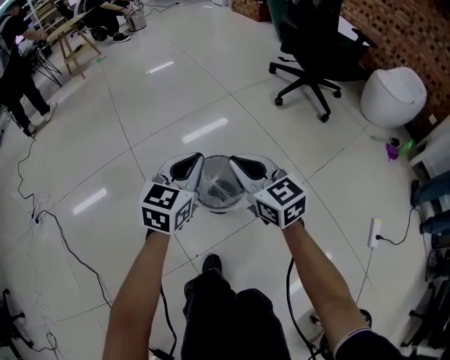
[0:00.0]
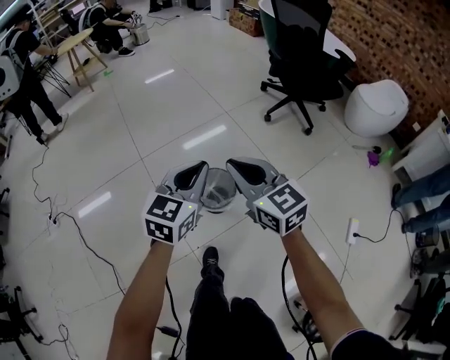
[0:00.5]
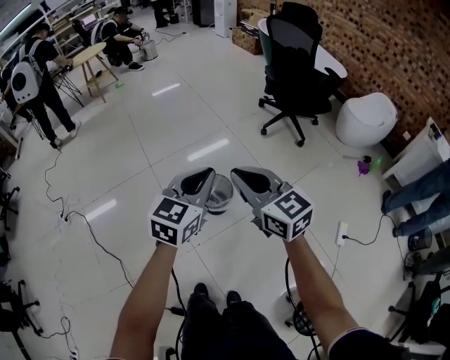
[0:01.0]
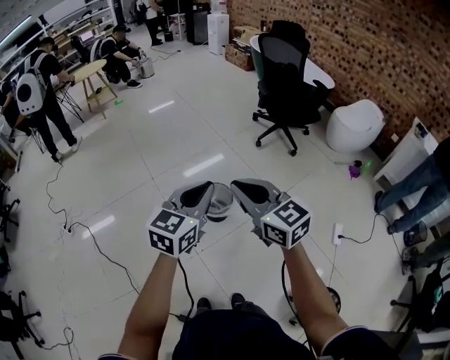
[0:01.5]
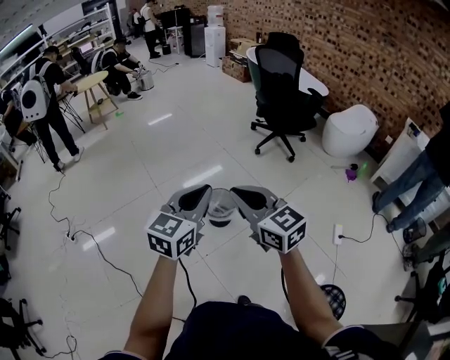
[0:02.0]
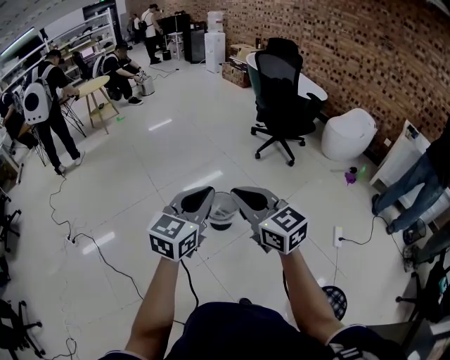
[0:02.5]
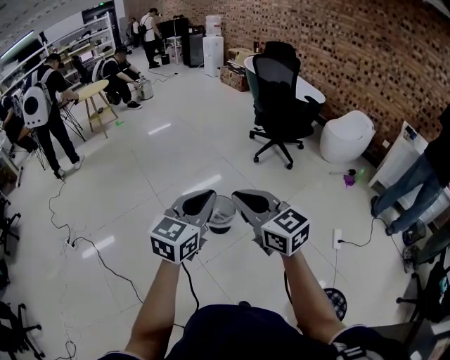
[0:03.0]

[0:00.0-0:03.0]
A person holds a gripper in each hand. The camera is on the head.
0:00.0 to 0:01.5: Both grippers travel together upward and backward, roughly 50 cm.
0:01.5 to 0:03.0: The two grippers go about 5 cm backward.

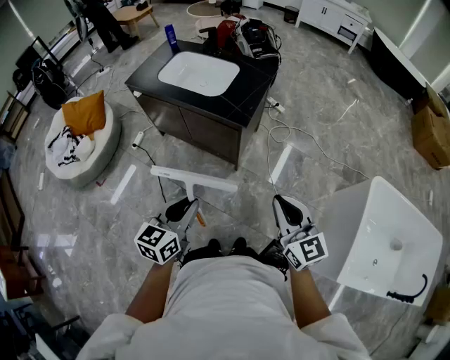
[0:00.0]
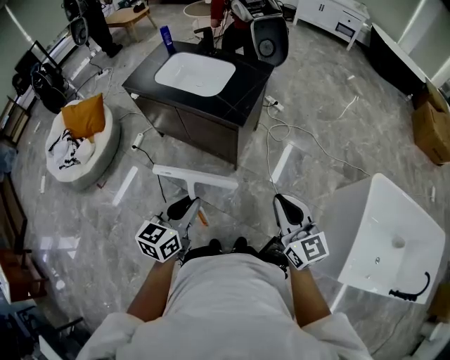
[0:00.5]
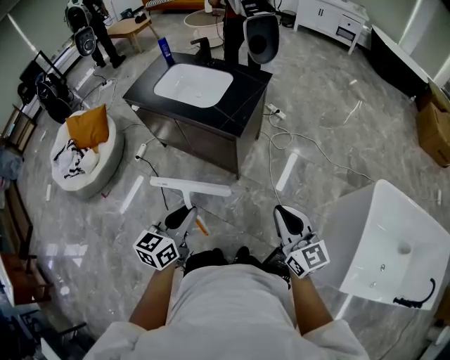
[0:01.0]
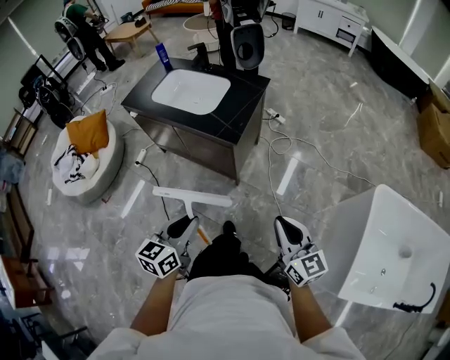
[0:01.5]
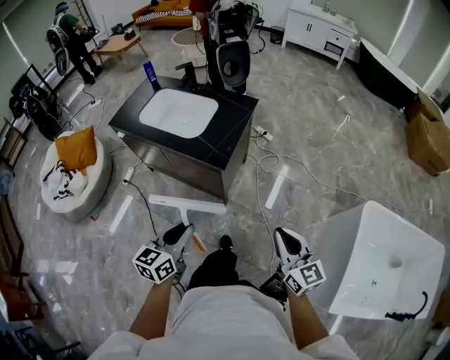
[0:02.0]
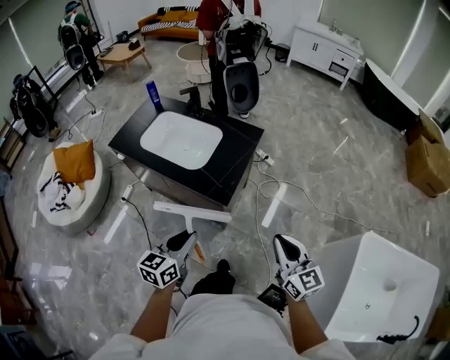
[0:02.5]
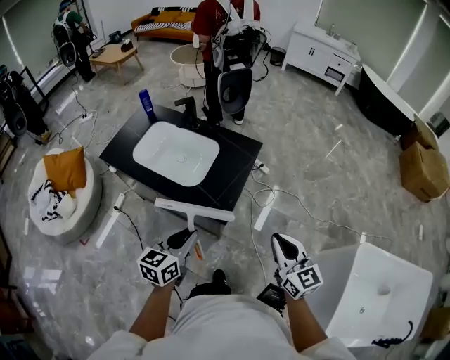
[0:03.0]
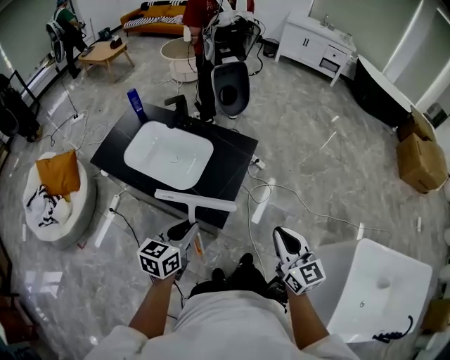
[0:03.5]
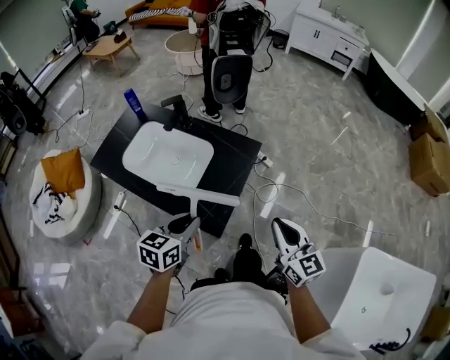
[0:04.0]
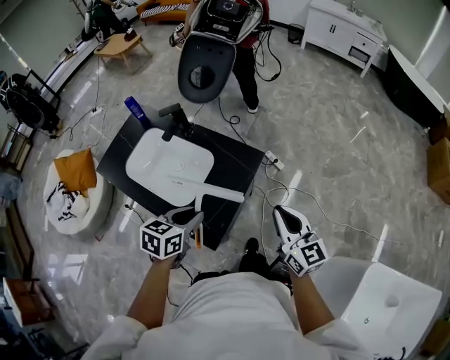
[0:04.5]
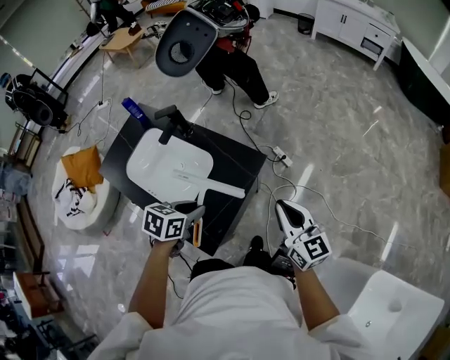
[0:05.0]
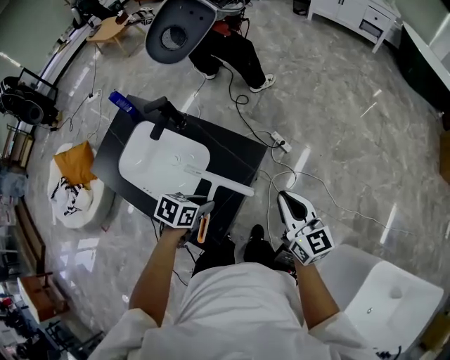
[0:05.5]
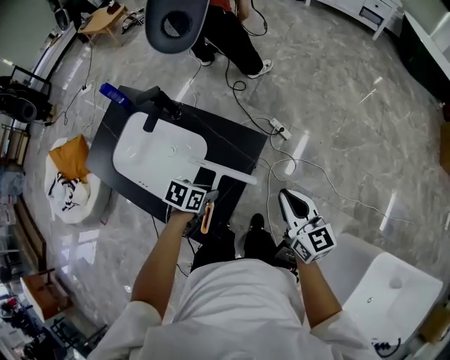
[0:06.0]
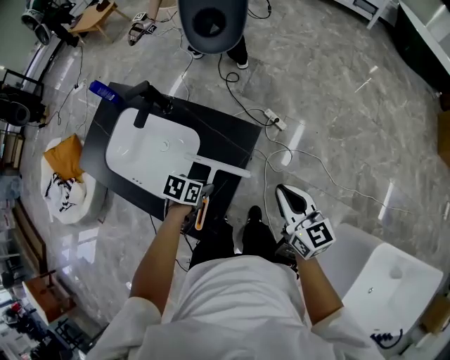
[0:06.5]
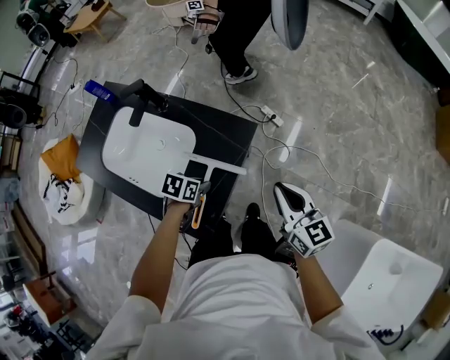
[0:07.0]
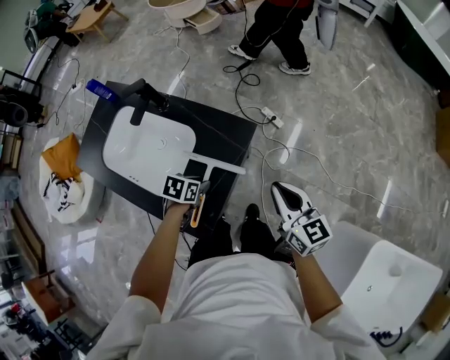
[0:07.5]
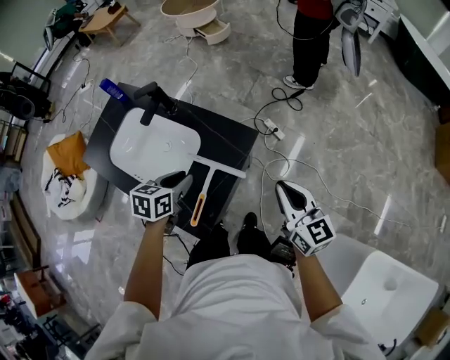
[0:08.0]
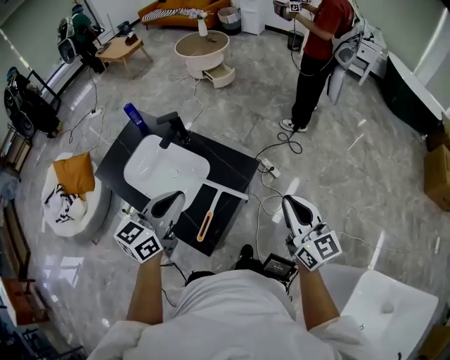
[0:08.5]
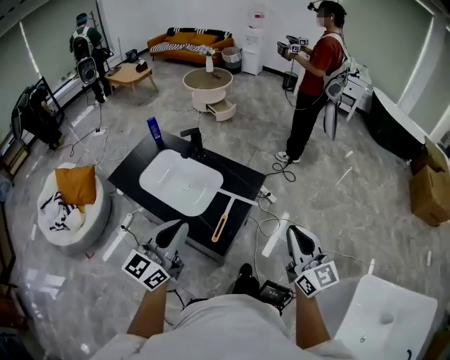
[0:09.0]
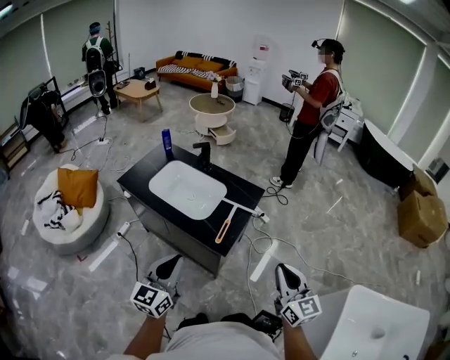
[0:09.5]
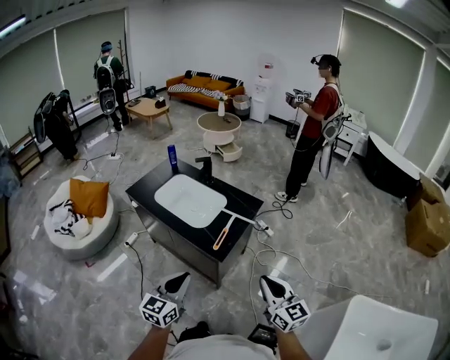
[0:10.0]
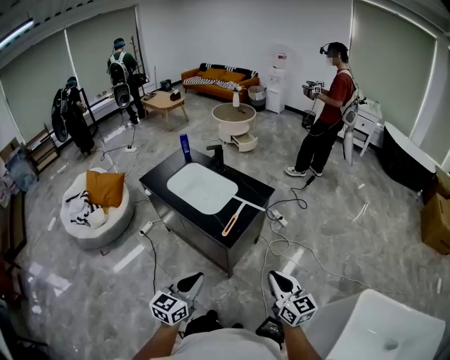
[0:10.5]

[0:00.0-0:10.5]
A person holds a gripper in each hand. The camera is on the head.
0:00.0 to 0:02.0: The right gripper travels to the right and forward by approximately 15 cm. Meanwhile the left gripper shifts approximately 10 cm forward and to the right.
0:02.0 to 0:04.0: Both grippers travel together forward, approximately 35 cm.
0:04.0 to 0:06.5: The right gripper heads forward and downward, covering approximately 20 cm. The left gripper moves downward and forward, roughly 30 cm, and rotates some 40 degrees.
0:06.5 to 0:08.5: The left gripper travels upward by some 30 cm, and angles its fingers upward, by some 50 degrees; the right gripper shifts about 15 cm upward.
0:08.5 to 0:10.5: Both grippers travel together backward, about 40 cm.

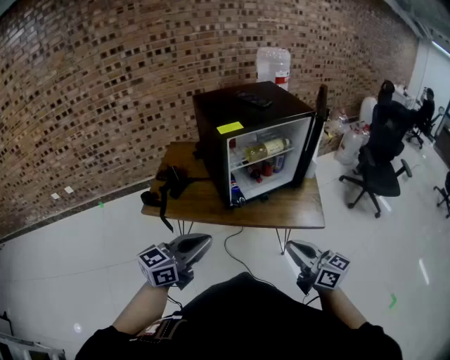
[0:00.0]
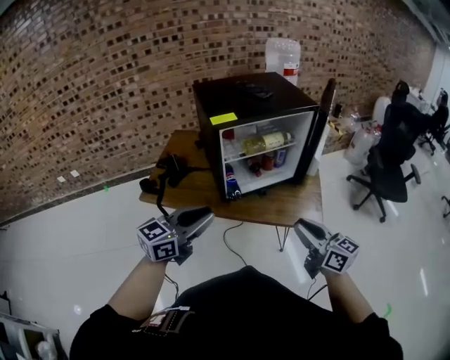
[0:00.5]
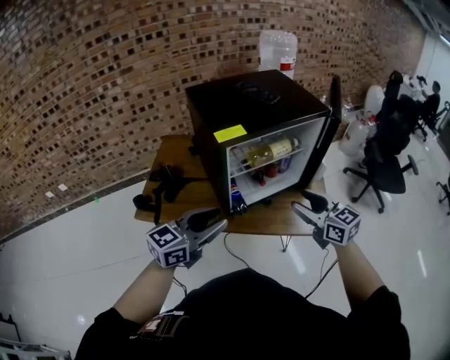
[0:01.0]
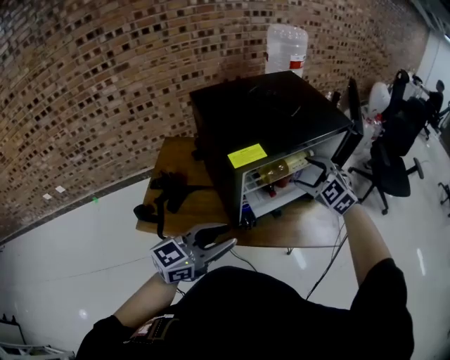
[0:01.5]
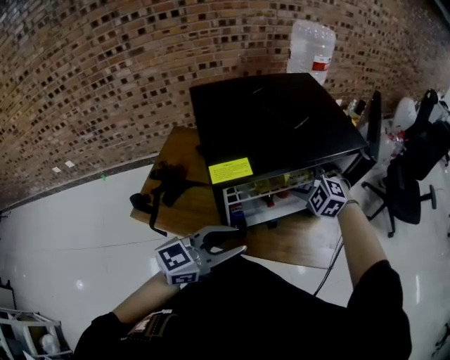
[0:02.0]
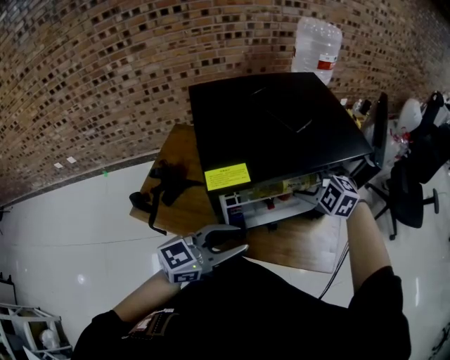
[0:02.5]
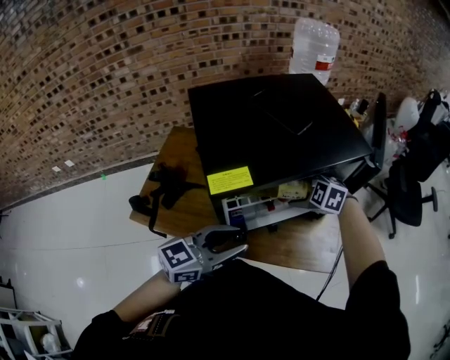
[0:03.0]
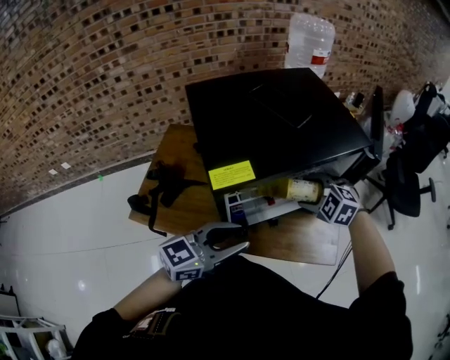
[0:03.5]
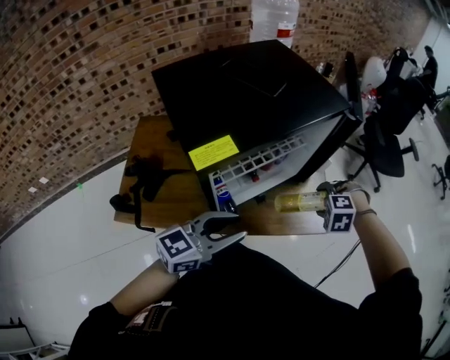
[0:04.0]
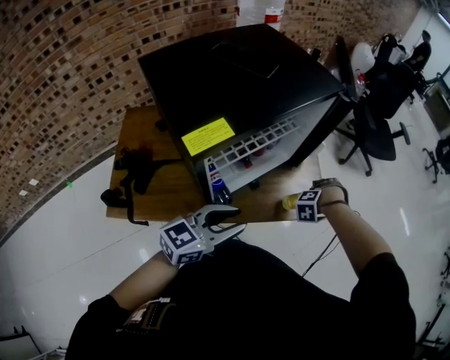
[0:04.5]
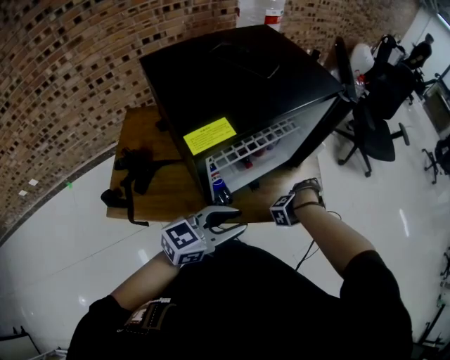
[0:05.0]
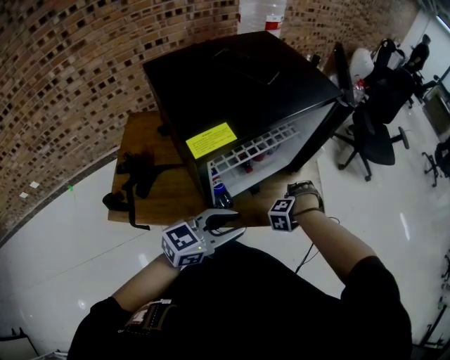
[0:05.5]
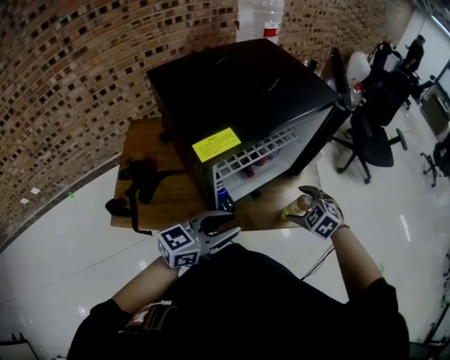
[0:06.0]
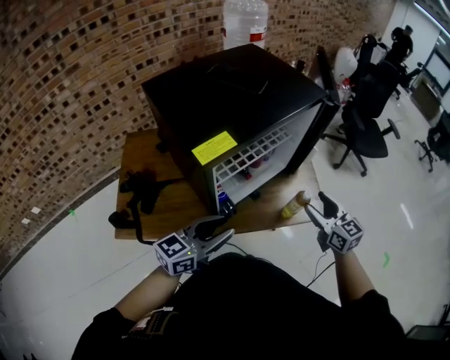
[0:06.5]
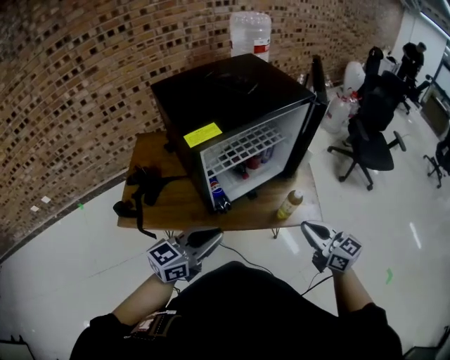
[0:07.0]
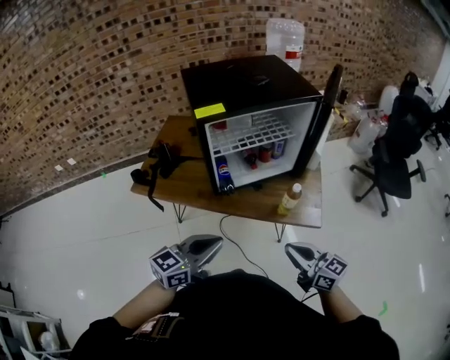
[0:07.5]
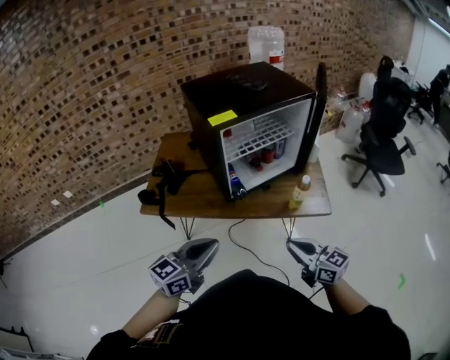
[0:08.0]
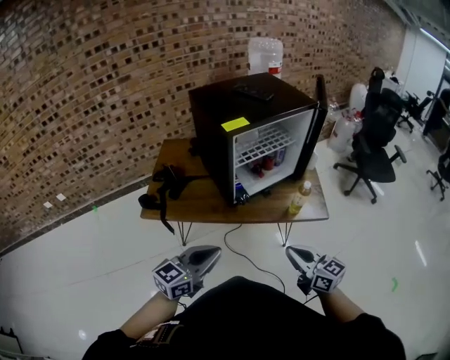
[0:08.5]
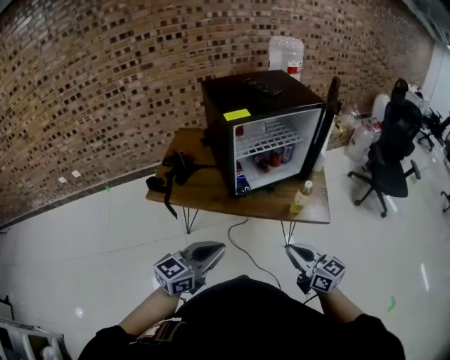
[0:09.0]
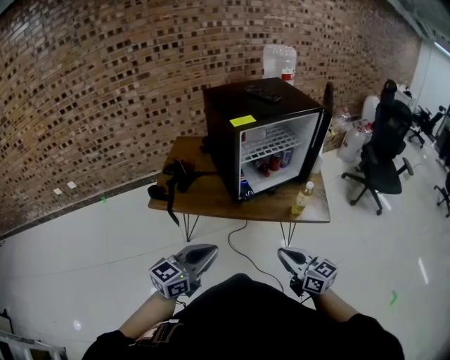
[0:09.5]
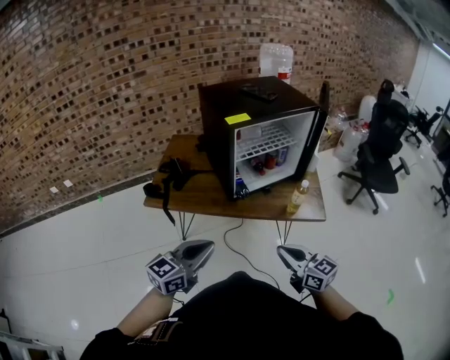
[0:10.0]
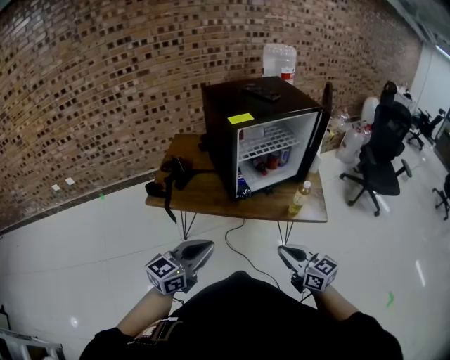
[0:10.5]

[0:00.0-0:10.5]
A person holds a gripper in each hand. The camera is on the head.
0:00.0 to 0:02.0: The right gripper shifts some 50 cm forward, twists about 70 degrees counterclockwise, seen from behind, and opens its fingers. Meanwhile the left gripper is displaced forward by about 30 cm, and opens up.
0:02.0 to 0:04.0: The right gripper ends up about 25 cm from where it was, and tilts its fingers some 30 degrees downward.
0:04.0 to 0:06.5: The right gripper goes some 10 cm upward, and tips its fingers upward by approximately 60 degrees, while the left gripper ends up roughly 5 cm from where it was.
0:06.5 to 0:08.5: The right gripper shifts by about 35 cm, rotates approximately 20 degrees, and closes; the left gripper changes place by roughly 25 cm, and closes.

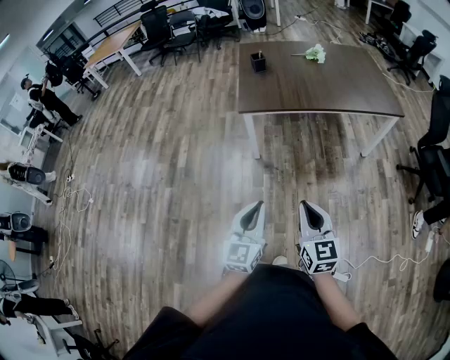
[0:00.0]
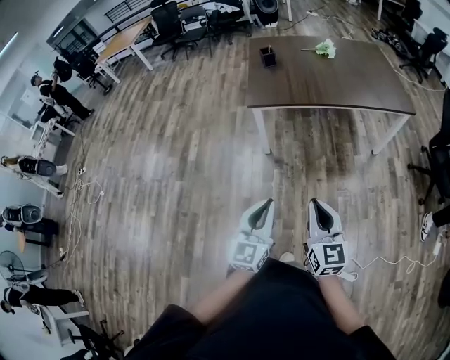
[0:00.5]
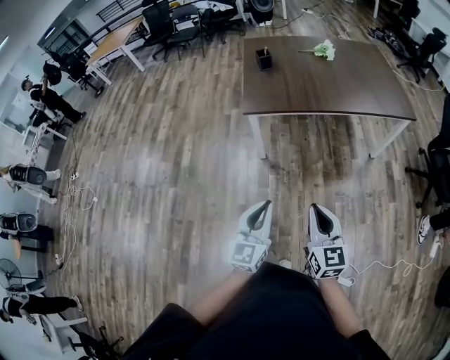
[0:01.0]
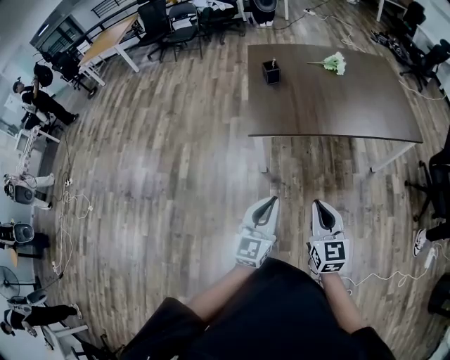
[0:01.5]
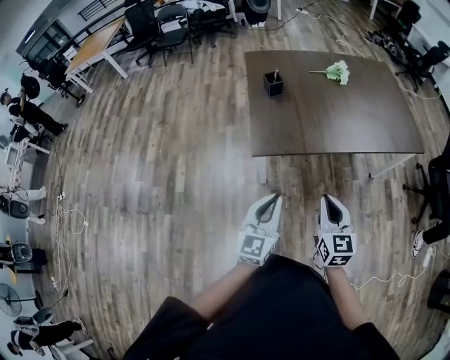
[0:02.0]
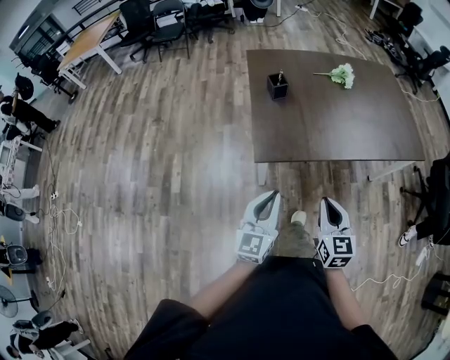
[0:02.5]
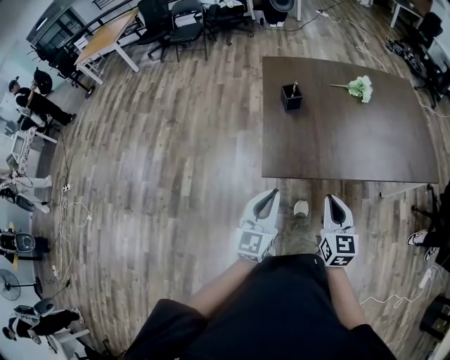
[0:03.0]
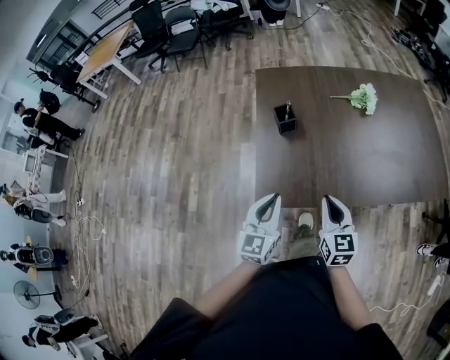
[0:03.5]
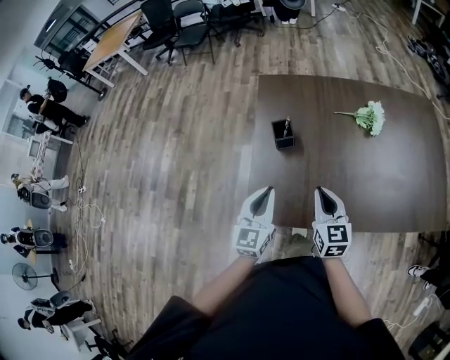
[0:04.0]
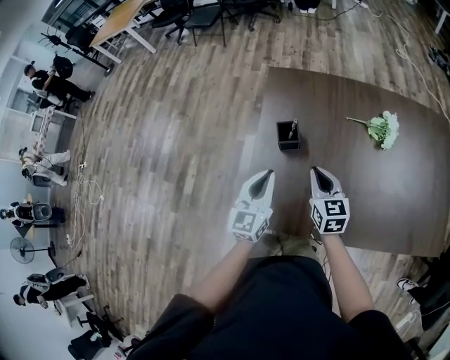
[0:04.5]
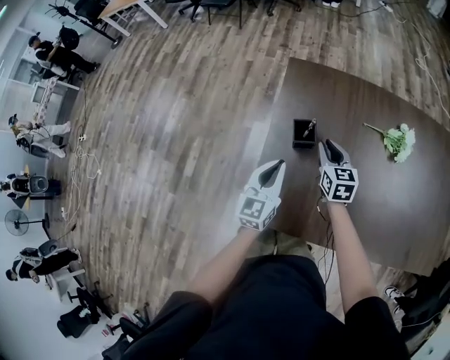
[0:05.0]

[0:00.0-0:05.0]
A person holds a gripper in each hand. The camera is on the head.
0:00.0 to 0:02.5: The pair of grippers is taken forward, roughly 50 cm.
0:02.5 to 0:05.0: The two grippers travel together, forward, about 60 cm. The right gripper changes its angle by some 20 degrees.
